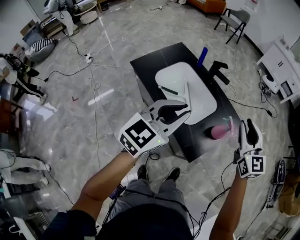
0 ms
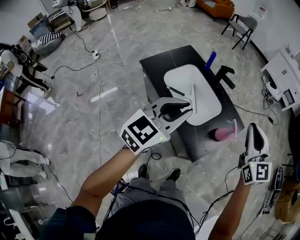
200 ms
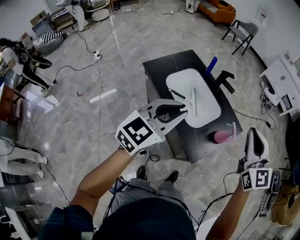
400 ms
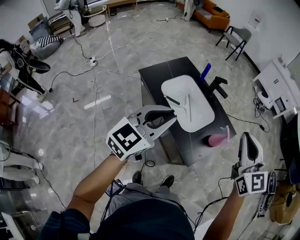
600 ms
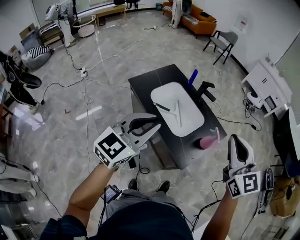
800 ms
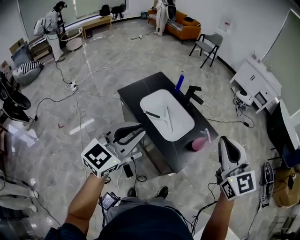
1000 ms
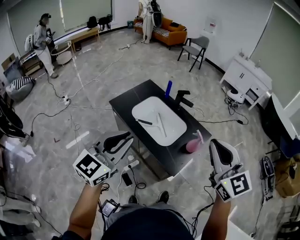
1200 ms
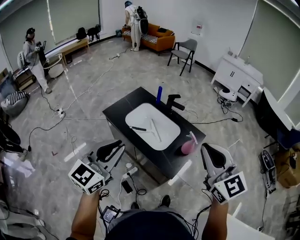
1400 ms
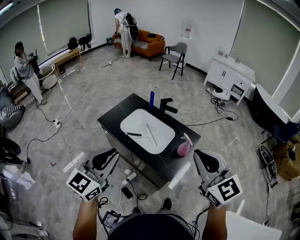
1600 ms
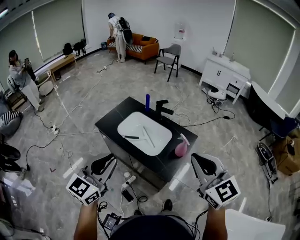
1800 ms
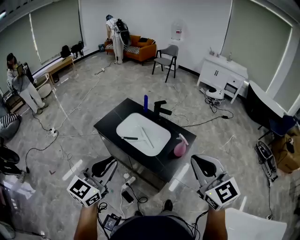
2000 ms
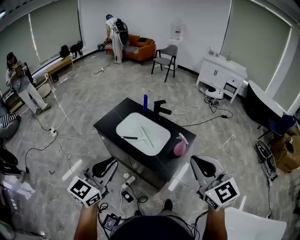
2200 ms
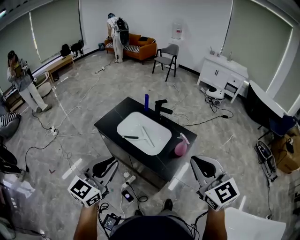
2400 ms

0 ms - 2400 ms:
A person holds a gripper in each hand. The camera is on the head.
0 ms - 1200 ms: The left gripper moves backward, upward and to the left, approximately 20 cm. The right gripper heads upward, backward and to the left, covering approximately 25 cm, and closes up.
1200 ms - 2400 ms: The right gripper travels backward by roughly 5 cm.

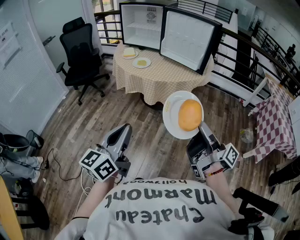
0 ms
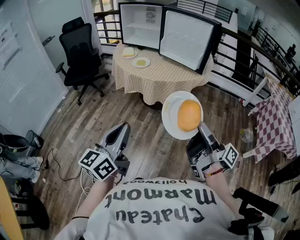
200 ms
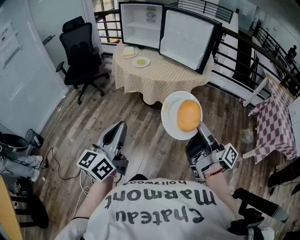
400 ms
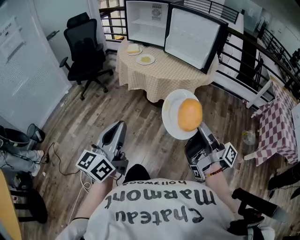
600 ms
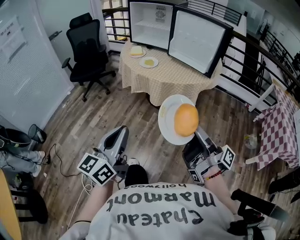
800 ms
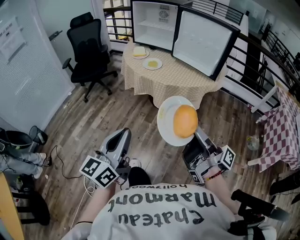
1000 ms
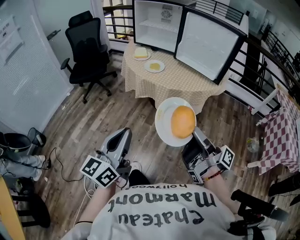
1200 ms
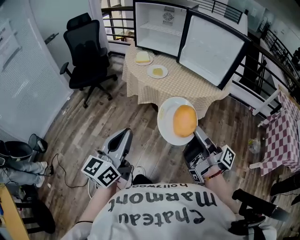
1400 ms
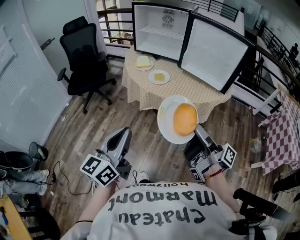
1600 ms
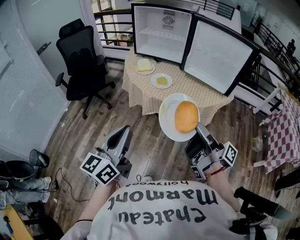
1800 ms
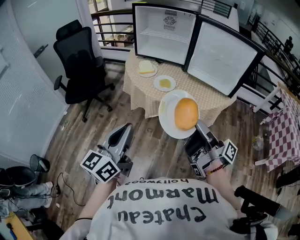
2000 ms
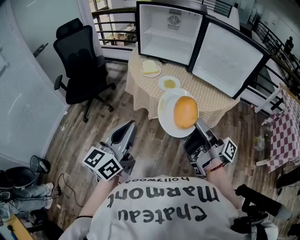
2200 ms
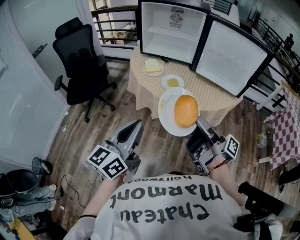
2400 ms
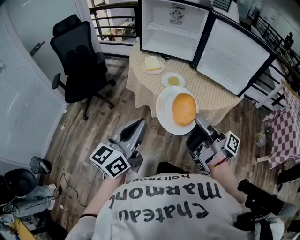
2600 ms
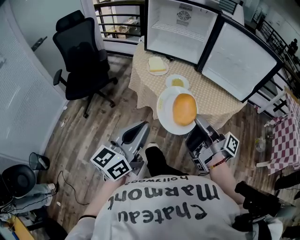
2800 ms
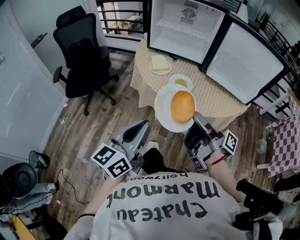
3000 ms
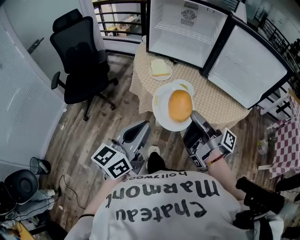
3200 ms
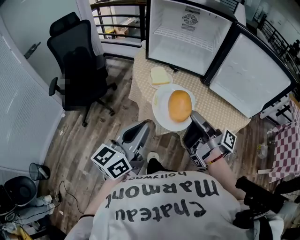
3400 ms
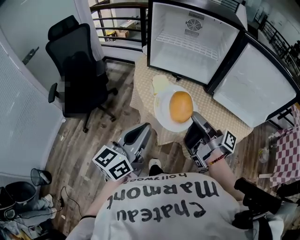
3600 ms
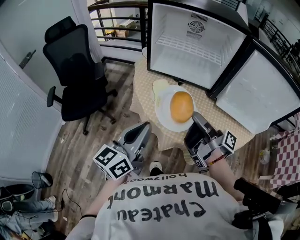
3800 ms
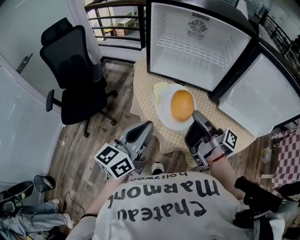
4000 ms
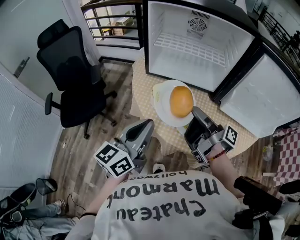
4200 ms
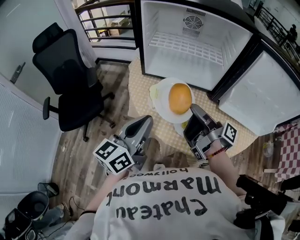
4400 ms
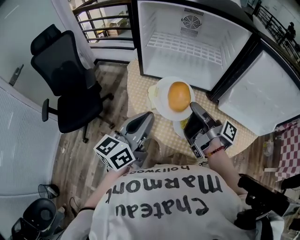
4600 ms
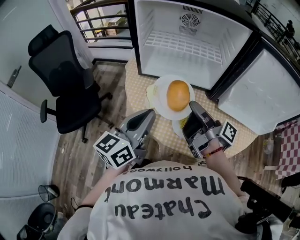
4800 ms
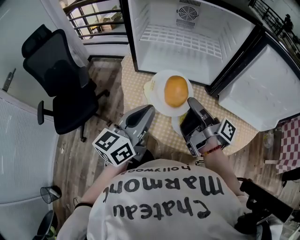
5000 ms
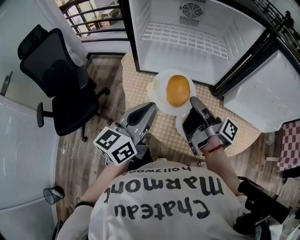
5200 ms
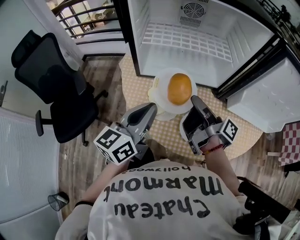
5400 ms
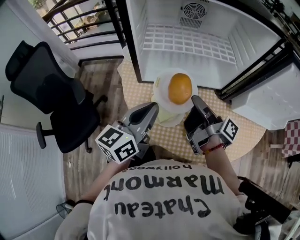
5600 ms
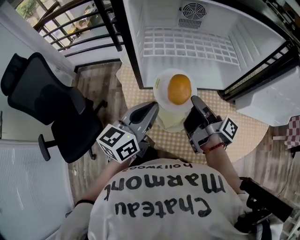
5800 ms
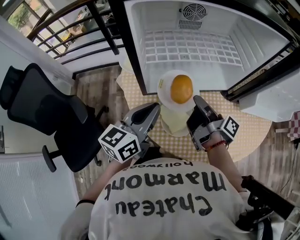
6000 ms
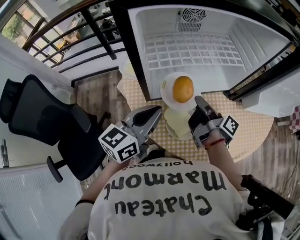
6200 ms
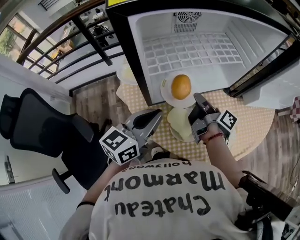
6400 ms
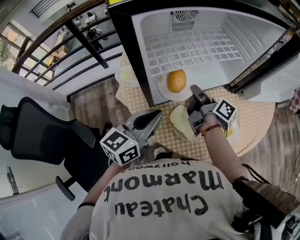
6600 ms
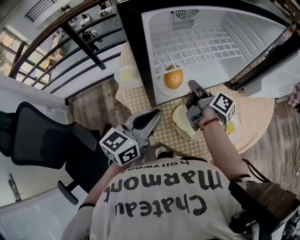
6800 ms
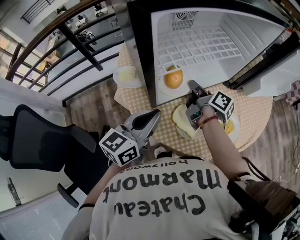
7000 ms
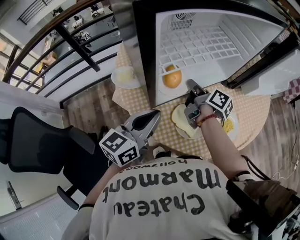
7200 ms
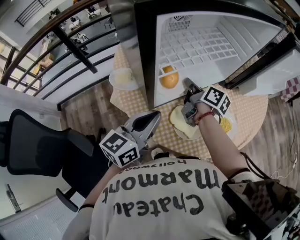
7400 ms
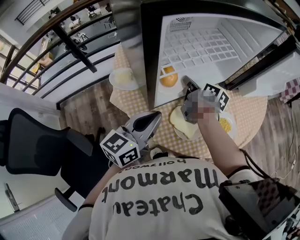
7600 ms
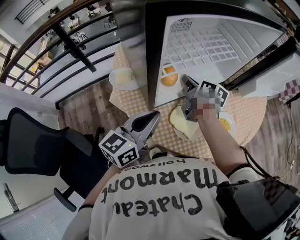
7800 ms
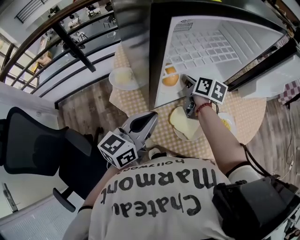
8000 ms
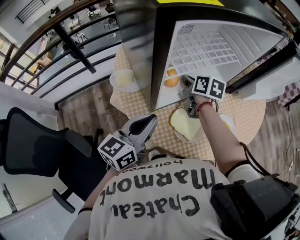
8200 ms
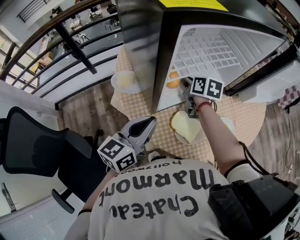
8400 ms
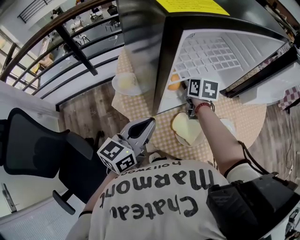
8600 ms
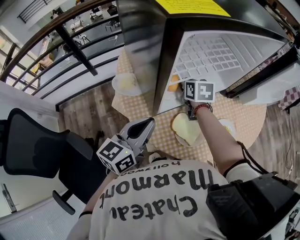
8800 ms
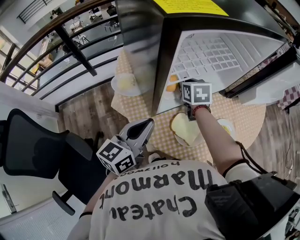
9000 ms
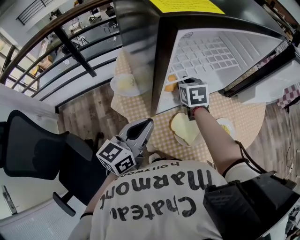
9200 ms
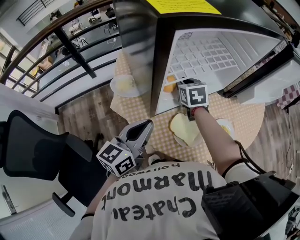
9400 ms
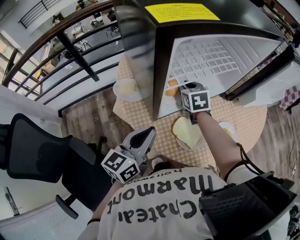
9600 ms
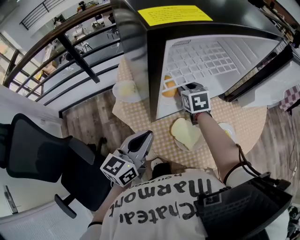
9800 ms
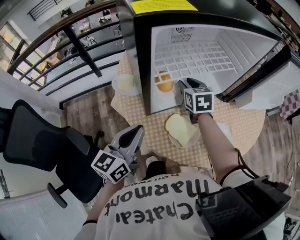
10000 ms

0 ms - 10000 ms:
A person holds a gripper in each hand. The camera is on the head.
0 ms - 1400 ms: Both grippers move forward and to the left, roughly 20 cm.
1400 ms - 2800 ms: Both grippers travel together forward and to the left, roughly 25 cm.
2800 ms - 4200 ms: The grippers both shift forward by about 30 cm.
4200 ms - 5800 ms: The left gripper shifts approximately 20 cm forward, and rotates roughly 20 degrees. The right gripper goes about 15 cm forward and downward, and changes its angle by roughly 30 degrees.
5800 ms - 7200 ms: The left gripper travels to the left by some 10 cm, and turns by approximately 30 degrees. Meanwhile the right gripper moves forward, to the left and downward, some 15 cm, and rotates about 40 degrees.
7200 ms - 8600 ms: The right gripper heads forward, covering some 5 cm, and rolls counterclockwise, seen from behind, by approximately 50 degrees.
8600 ms - 10000 ms: The right gripper turns by approximately 20 degrees.

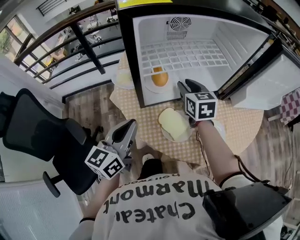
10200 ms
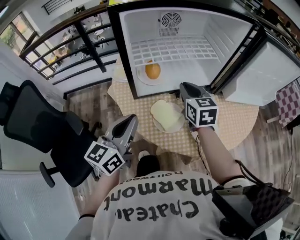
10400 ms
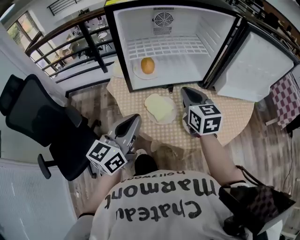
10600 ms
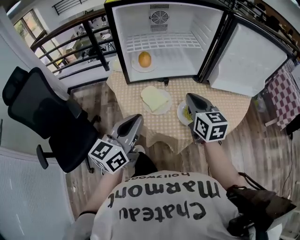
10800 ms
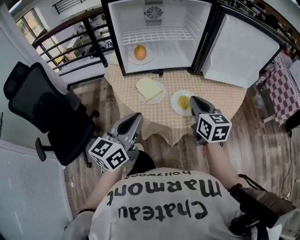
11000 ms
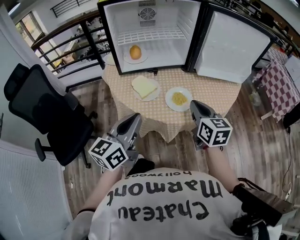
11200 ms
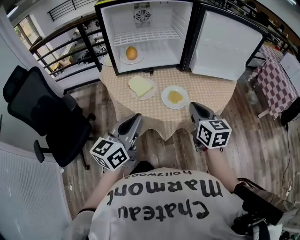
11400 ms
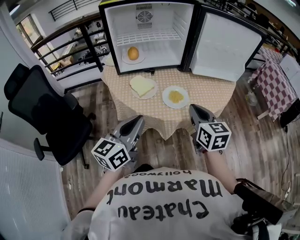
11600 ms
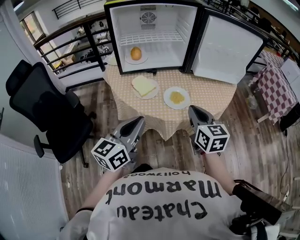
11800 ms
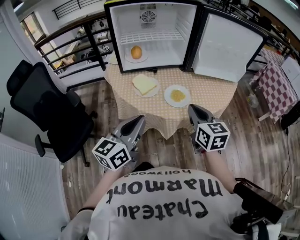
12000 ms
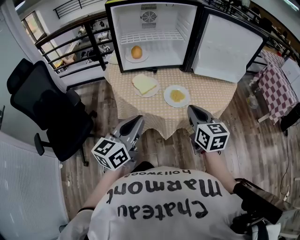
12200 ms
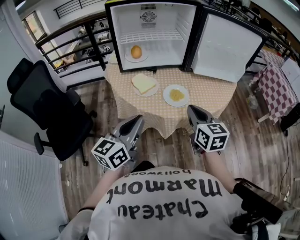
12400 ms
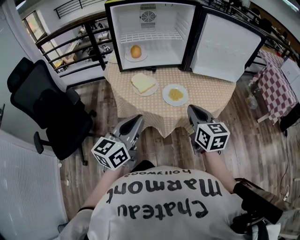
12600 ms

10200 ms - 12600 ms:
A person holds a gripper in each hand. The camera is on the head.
10200 ms - 11400 ms: The two grippers go about 35 cm backward and to the right. The right gripper closes its fingers.
11400 ms - 12600 ms: The grippers stay close to where they were, moving slightly.

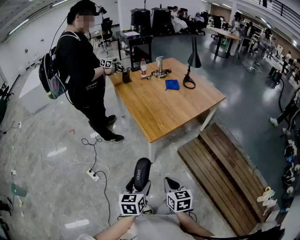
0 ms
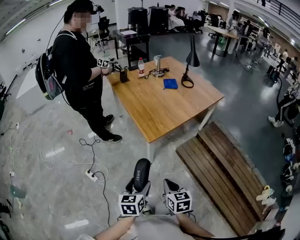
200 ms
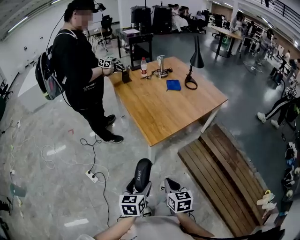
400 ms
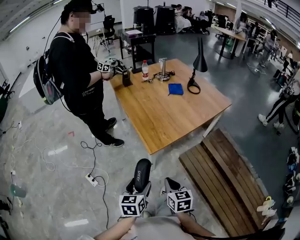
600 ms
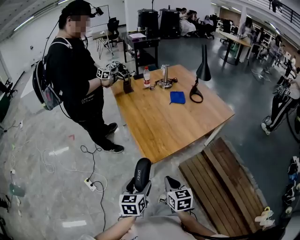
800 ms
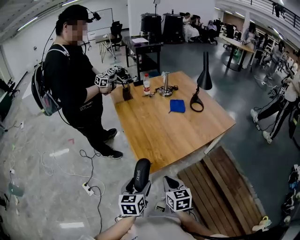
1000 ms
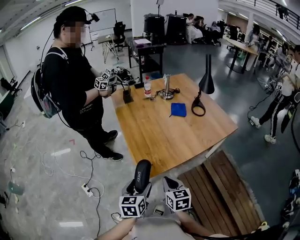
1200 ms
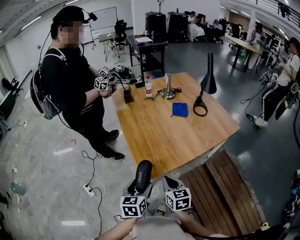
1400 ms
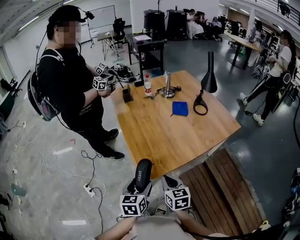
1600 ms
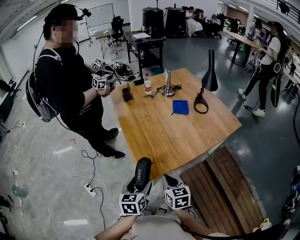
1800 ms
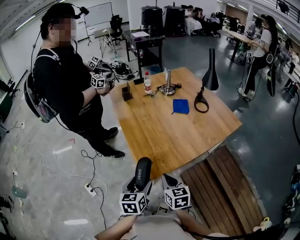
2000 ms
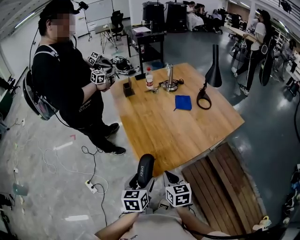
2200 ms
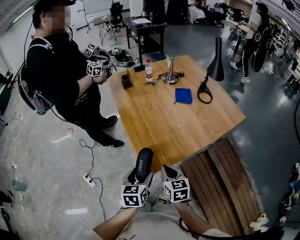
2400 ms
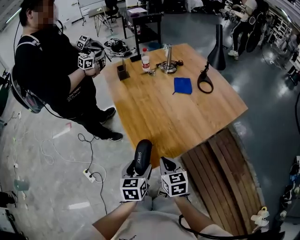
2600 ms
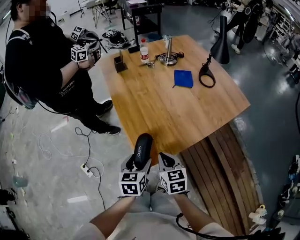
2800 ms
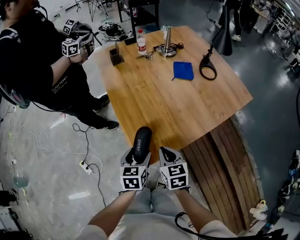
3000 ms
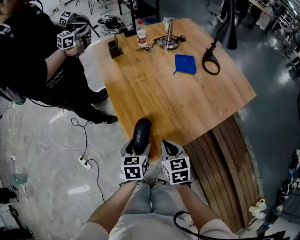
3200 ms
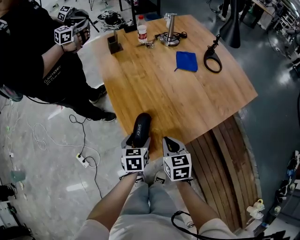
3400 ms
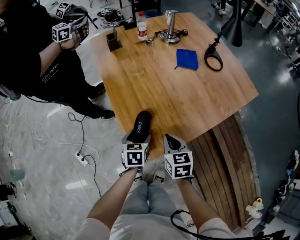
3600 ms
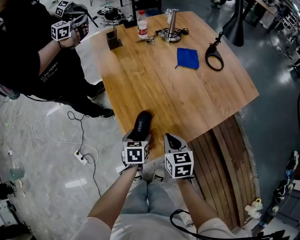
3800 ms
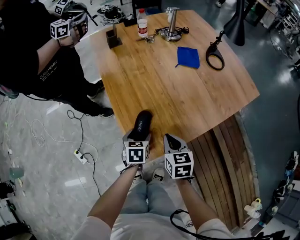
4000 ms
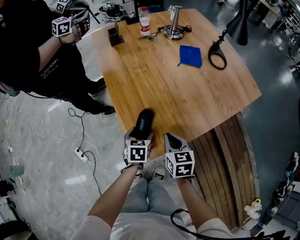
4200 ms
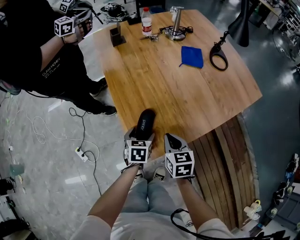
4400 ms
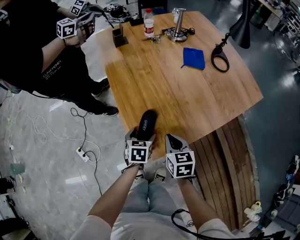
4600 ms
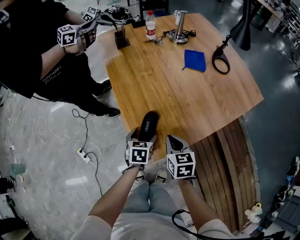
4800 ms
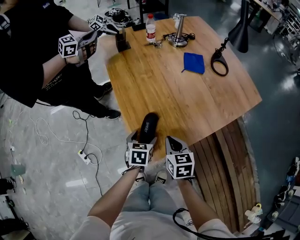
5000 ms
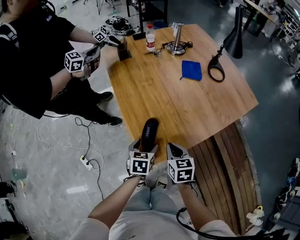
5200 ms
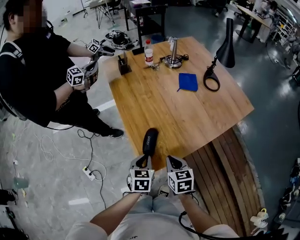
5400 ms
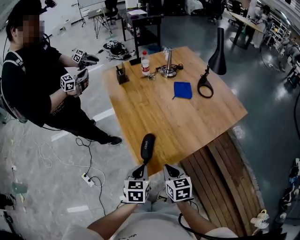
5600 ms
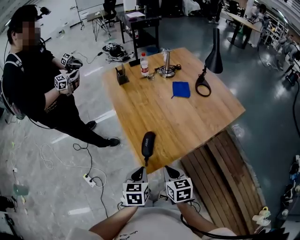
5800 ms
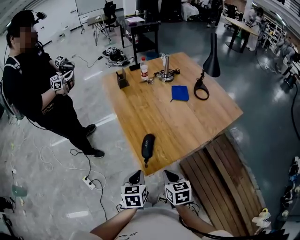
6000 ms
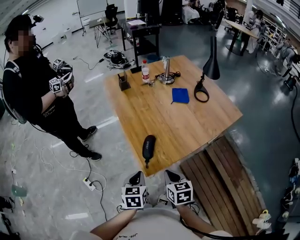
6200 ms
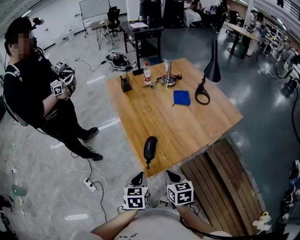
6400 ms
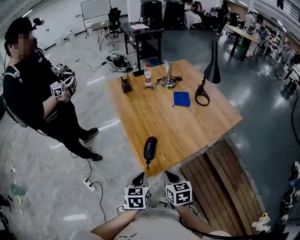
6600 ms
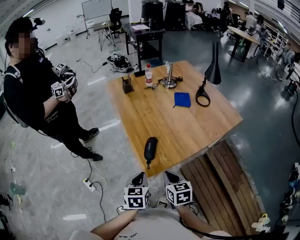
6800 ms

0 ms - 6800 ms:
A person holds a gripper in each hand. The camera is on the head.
0 ms - 1400 ms: Both grippers move forward, some 30 cm.
1400 ms - 2800 ms: Both grippers travel together forward and downward, approximately 15 cm.
2800 ms - 4000 ms: The left gripper moves downward and forward, some 20 cm, while the right gripper travels downward and forward by roughly 10 cm.
4000 ms - 5400 ms: The right gripper goes some 5 cm backward. Meanwhile the left gripper is displaced upward and backward by approximately 15 cm, and closes.
5400 ms - 6800 ms: Both grippers travel together backward and upward, roughly 15 cm.

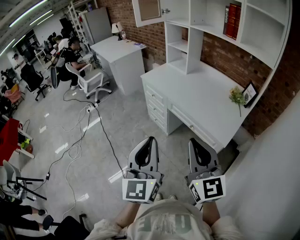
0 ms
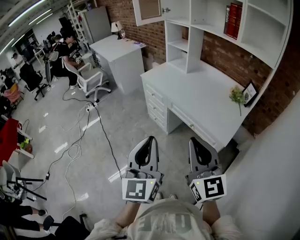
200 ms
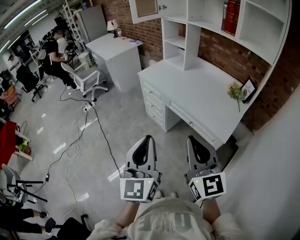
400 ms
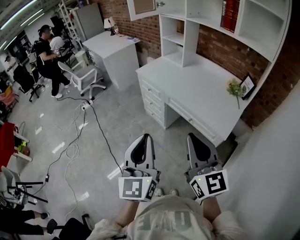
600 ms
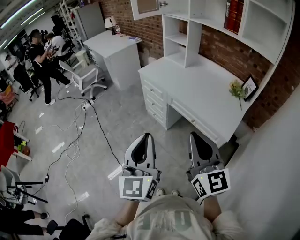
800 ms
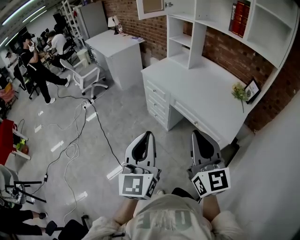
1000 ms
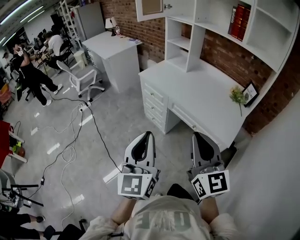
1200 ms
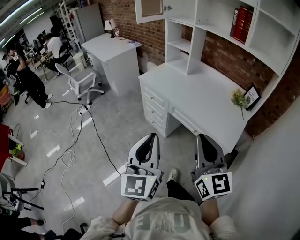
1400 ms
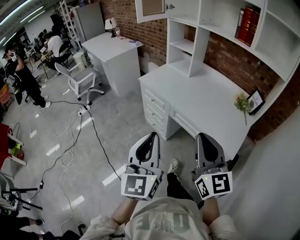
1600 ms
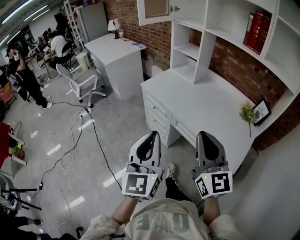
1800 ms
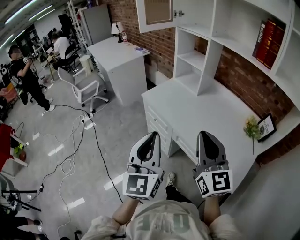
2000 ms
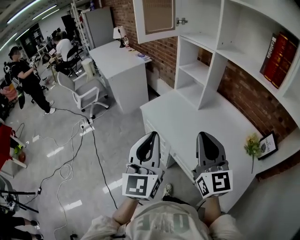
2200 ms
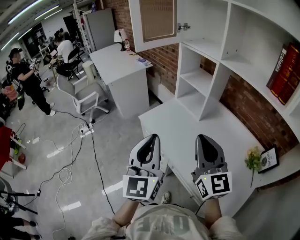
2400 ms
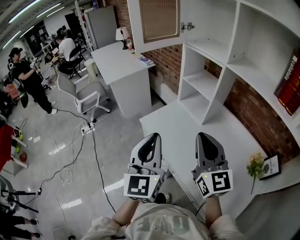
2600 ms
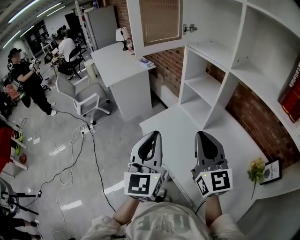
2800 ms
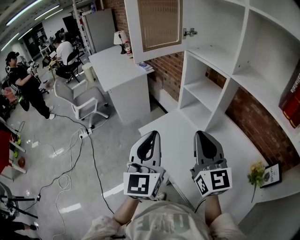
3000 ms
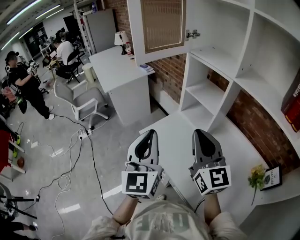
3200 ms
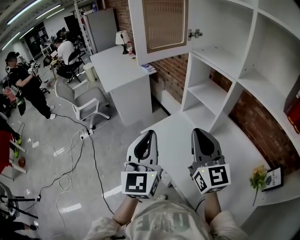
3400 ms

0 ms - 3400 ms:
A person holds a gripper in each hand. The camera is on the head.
0 ms - 1600 ms: The two grippers go approximately 15 cm forward.
1600 ms - 3400 ms: The pair of grippers is taken forward, some 50 cm.
